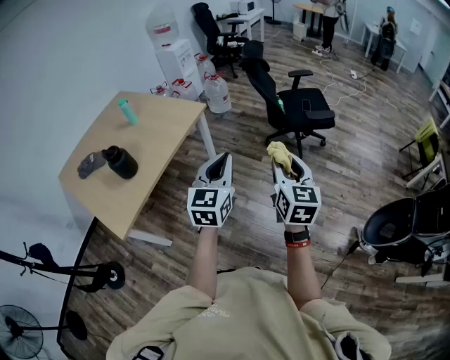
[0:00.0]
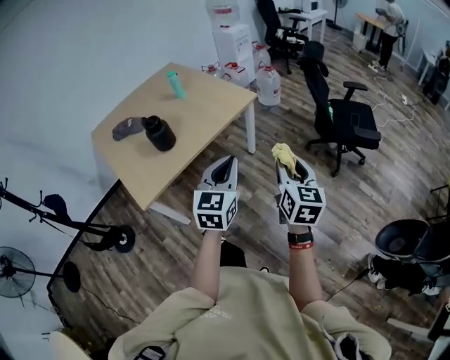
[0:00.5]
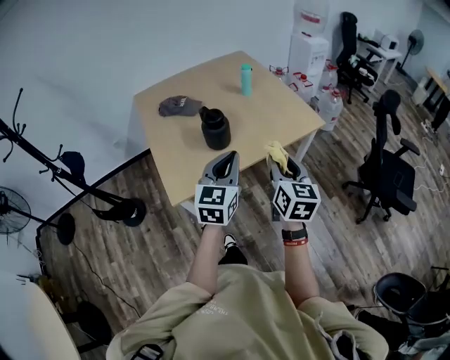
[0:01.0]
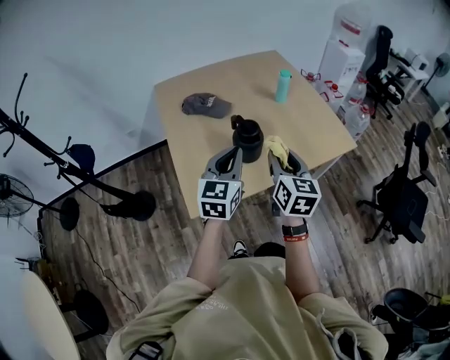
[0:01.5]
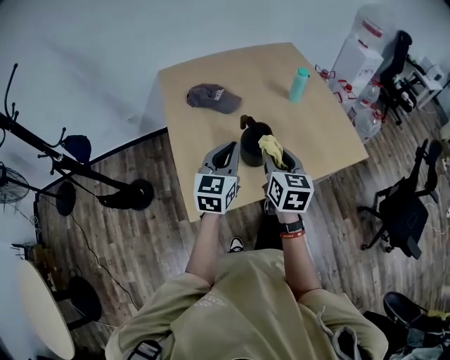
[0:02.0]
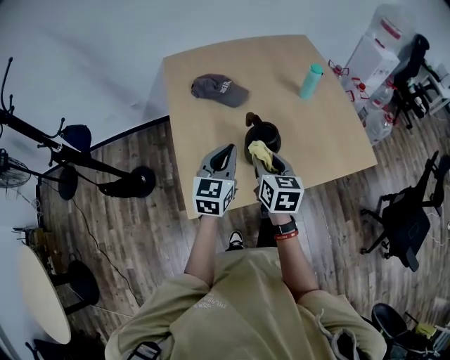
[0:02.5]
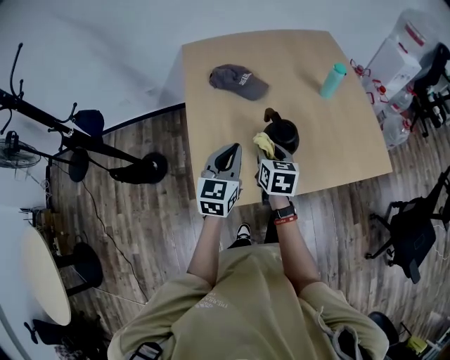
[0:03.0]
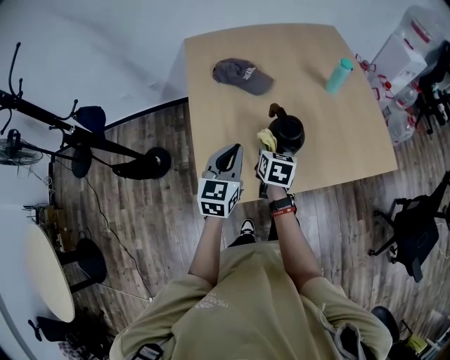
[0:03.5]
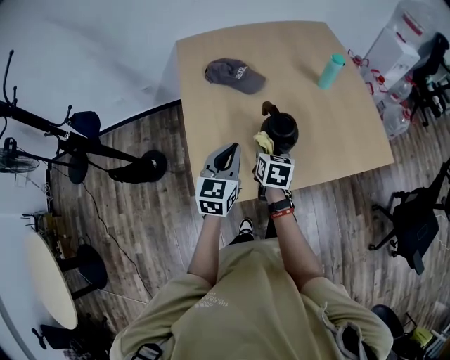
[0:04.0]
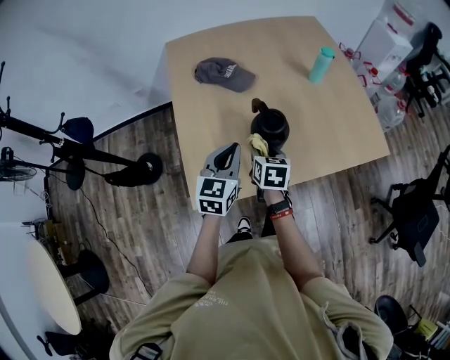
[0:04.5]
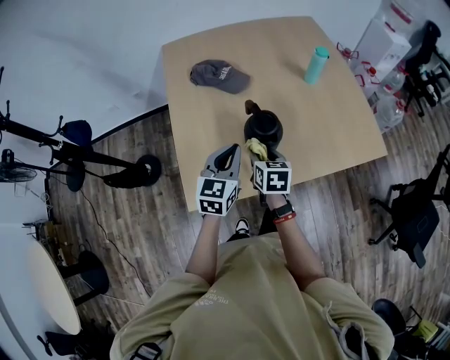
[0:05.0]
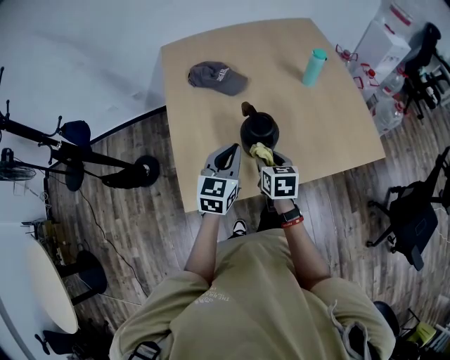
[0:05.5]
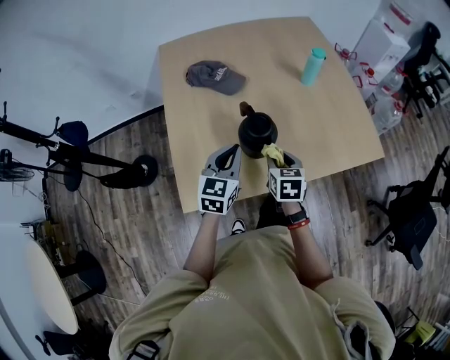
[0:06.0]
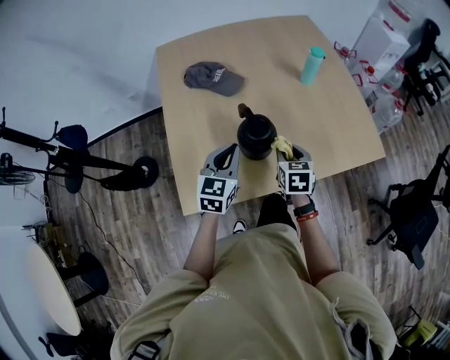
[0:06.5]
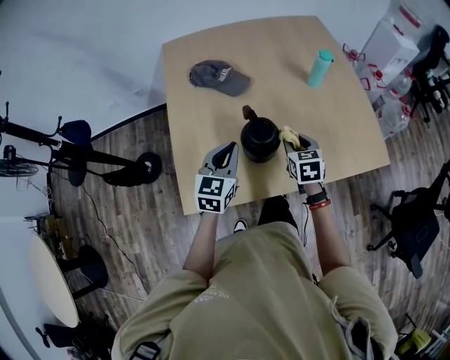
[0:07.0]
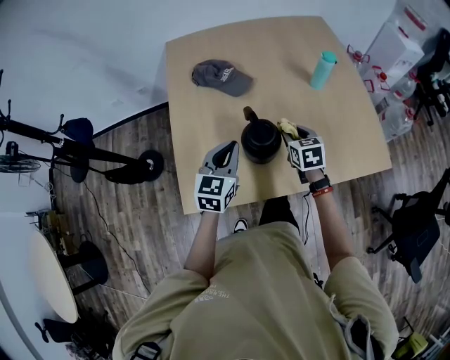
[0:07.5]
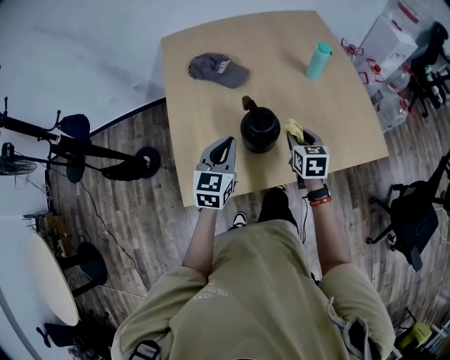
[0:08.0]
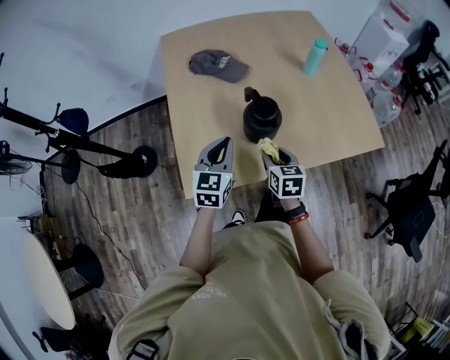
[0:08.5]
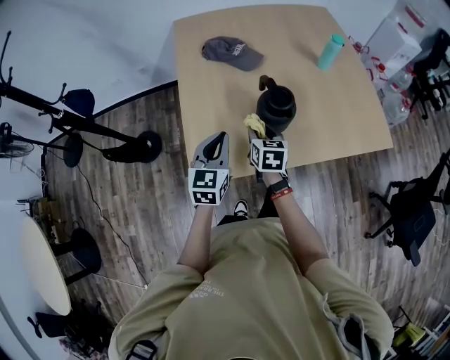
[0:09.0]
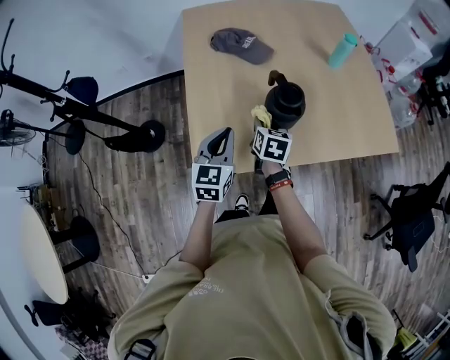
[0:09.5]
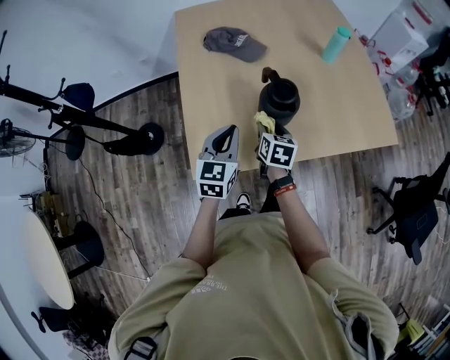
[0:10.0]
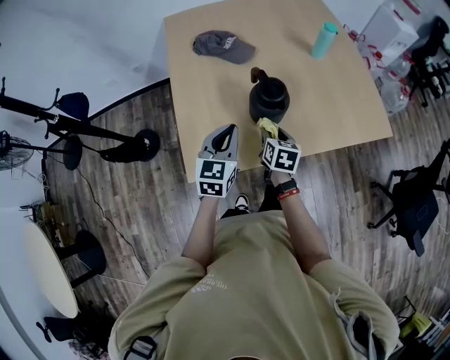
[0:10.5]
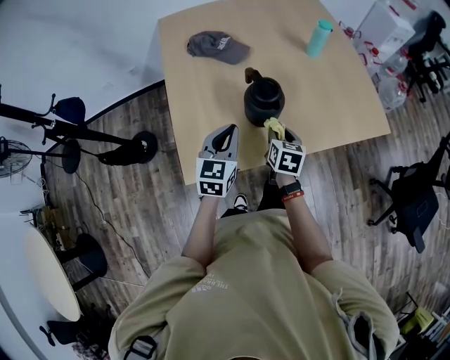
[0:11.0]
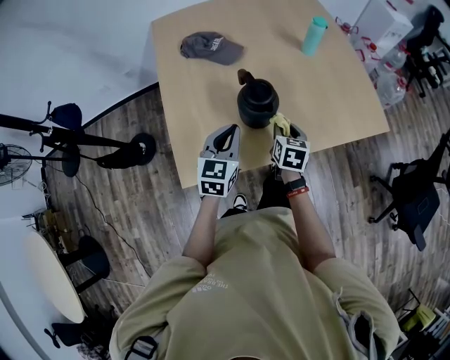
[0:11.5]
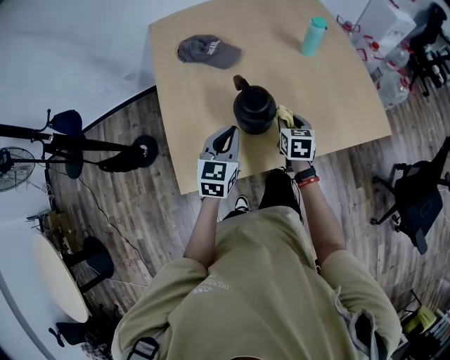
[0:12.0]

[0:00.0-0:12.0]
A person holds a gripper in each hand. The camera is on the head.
0:00.0 to 0:02.0: The pair of grippers is taken some 80 cm. The left gripper changes its angle by some 40 degrees. Meanwhile the right gripper rotates approximately 50 degrees.
0:02.0 to 0:04.0: The right gripper goes roughly 20 cm downward, forward and to the left, and swivels some 20 degrees; the left gripper moves downward, about 10 cm.
0:04.0 to 0:06.0: Both grippers move to the right, roughly 10 cm.
0:06.0 to 0:08.0: The right gripper travels forward and to the right by roughly 10 cm.
0:08.0 to 0:10.0: The right gripper moves to the left and backward, about 15 cm. Meanwhile the left gripper shifts roughly 10 cm backward and to the left.
0:10.0 to 0:12.0: The left gripper travels to the right and forward by roughly 10 cm. The right gripper heads to the right and forward, covering about 15 cm.

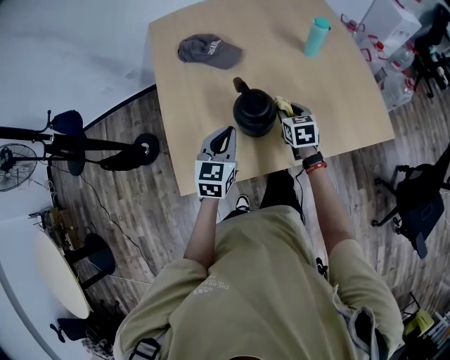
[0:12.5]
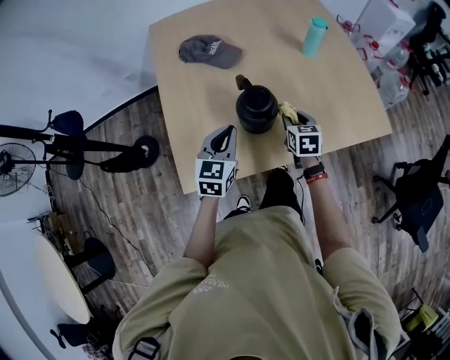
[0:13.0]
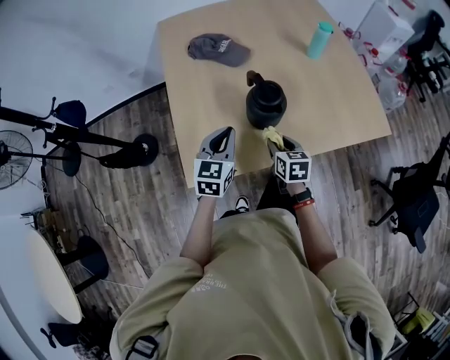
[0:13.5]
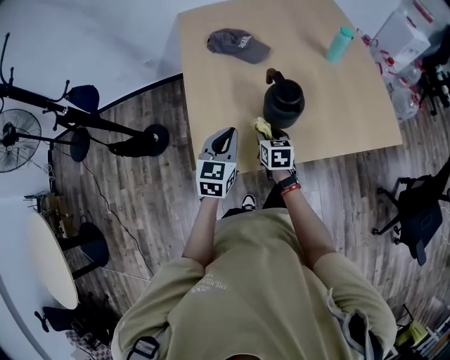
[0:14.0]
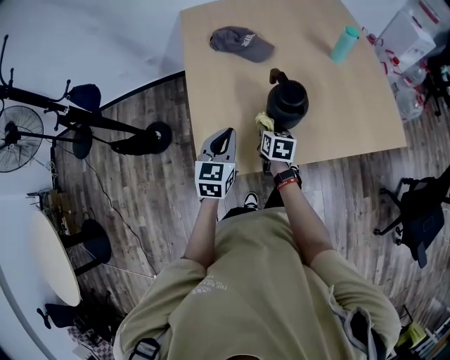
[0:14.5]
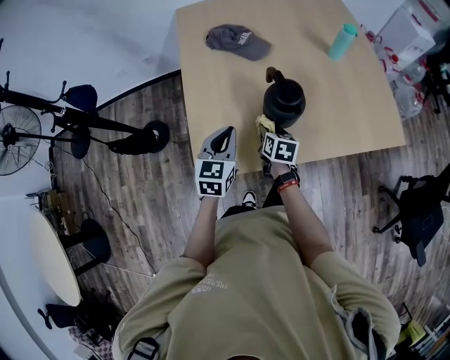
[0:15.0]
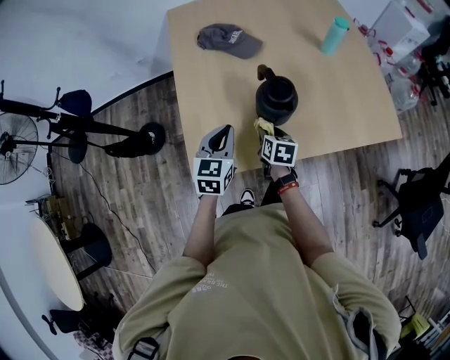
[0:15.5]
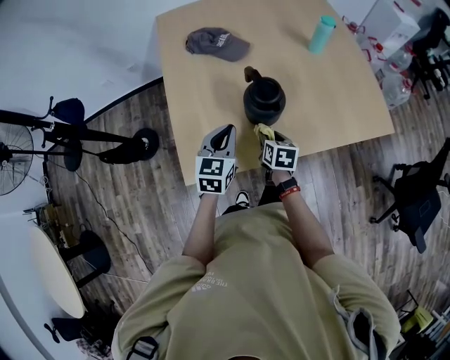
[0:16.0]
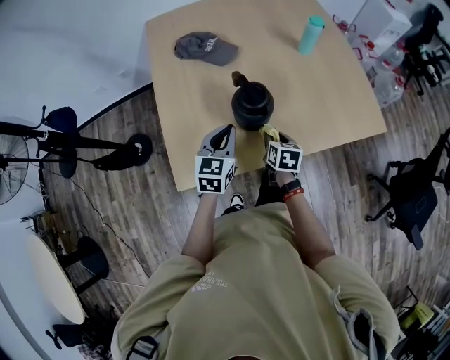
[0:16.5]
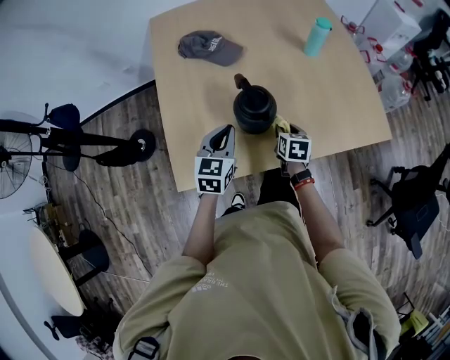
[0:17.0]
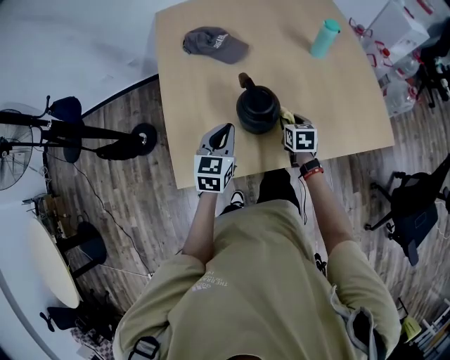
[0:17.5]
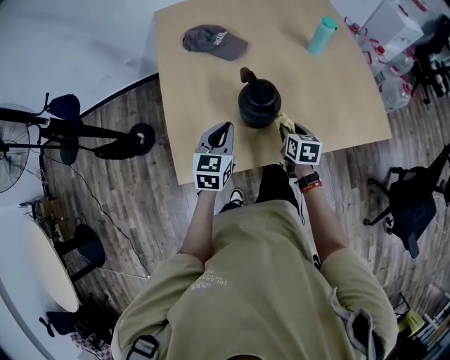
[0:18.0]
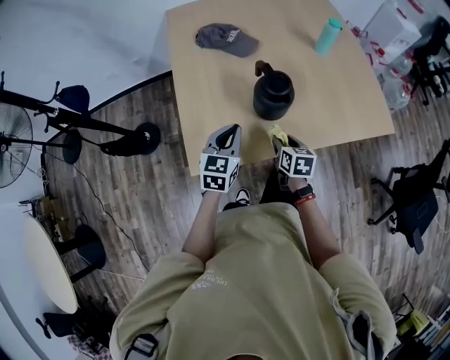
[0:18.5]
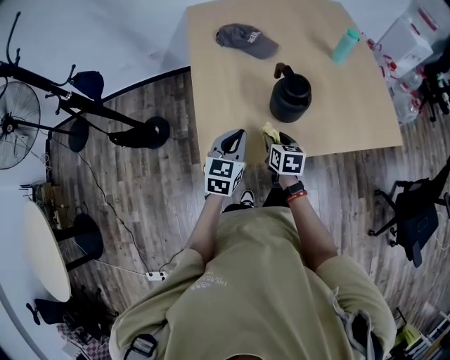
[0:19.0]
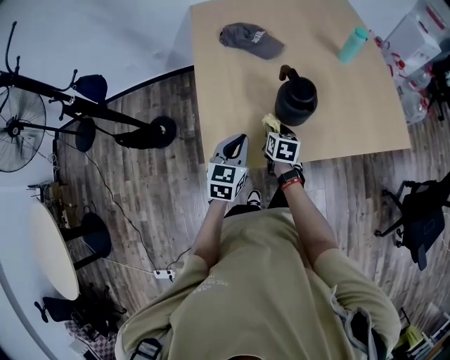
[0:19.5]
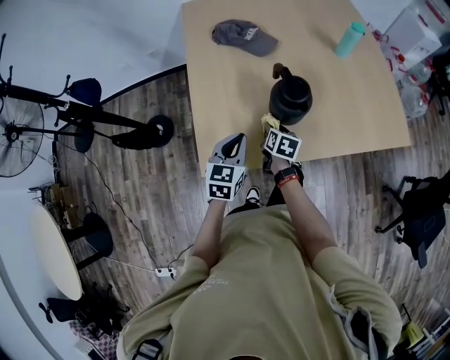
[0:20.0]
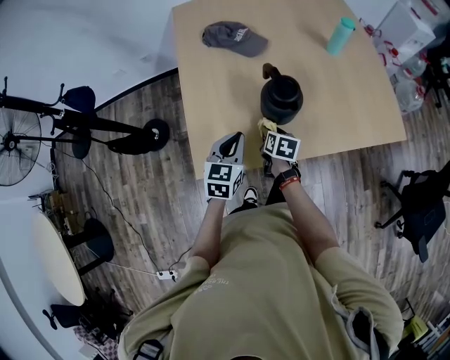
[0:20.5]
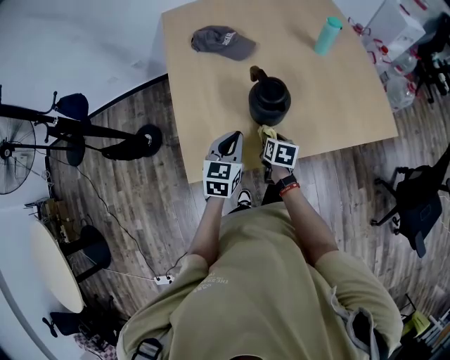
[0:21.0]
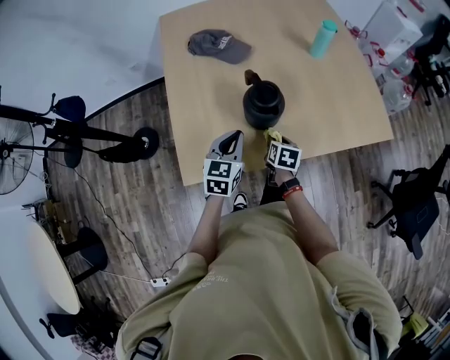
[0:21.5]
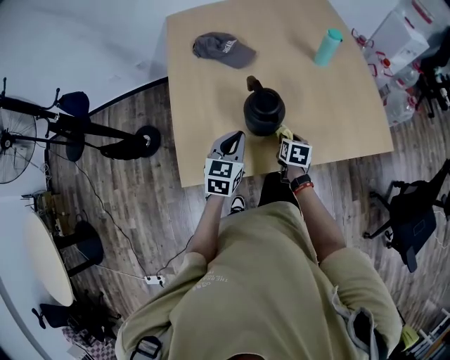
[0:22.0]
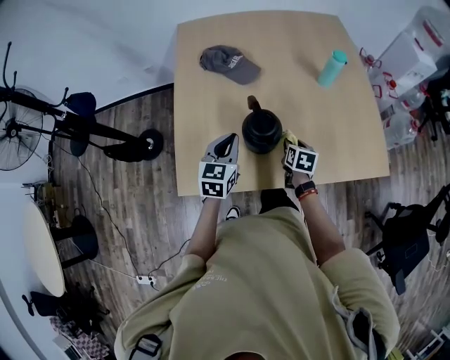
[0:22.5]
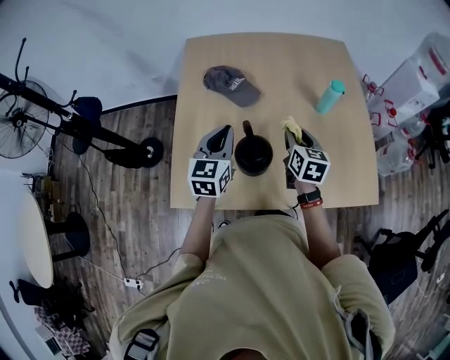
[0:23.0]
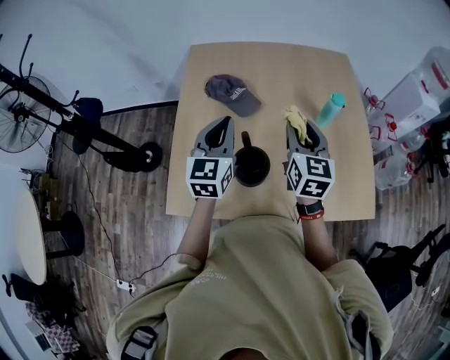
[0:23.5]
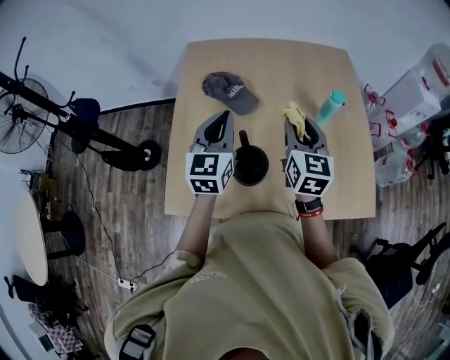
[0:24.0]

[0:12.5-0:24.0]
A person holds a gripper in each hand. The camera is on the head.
0:12.5 to 0:14.5: The right gripper goes roughly 20 cm to the left and backward. Meanwhile the left gripper travels to the left and backward by roughly 15 cm.
0:14.5 to 0:16.5: The two grippers go approximately 10 cm to the right.
0:16.5 to 0:18.5: The right gripper heads backward, covering approximately 5 cm; the left gripper goes some 10 cm backward and to the left.
0:18.5 to 0:20.0: The right gripper travels forward and to the left by some 10 cm.
0:20.0 to 0:22.0: The right gripper shifts some 15 cm to the right. Meanwhile the left gripper shifts roughly 10 cm to the right and forward.
0:22.0 to 0:24.0: Both grippers move upward and forward, approximately 35 cm. The right gripper angles its fingers upward, by some 40 degrees. Meanwhile the left gripper rotates roughly 30 degrees.

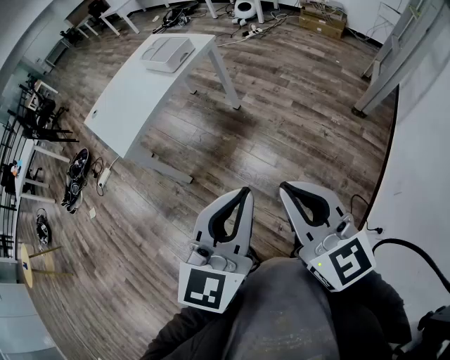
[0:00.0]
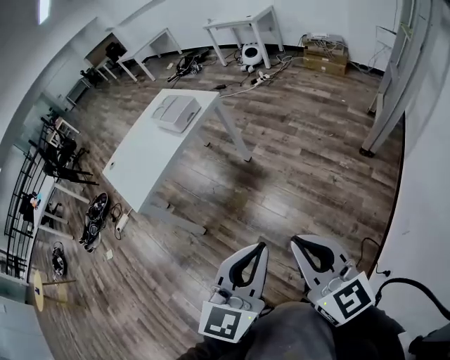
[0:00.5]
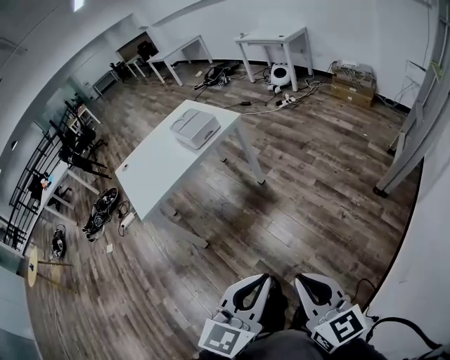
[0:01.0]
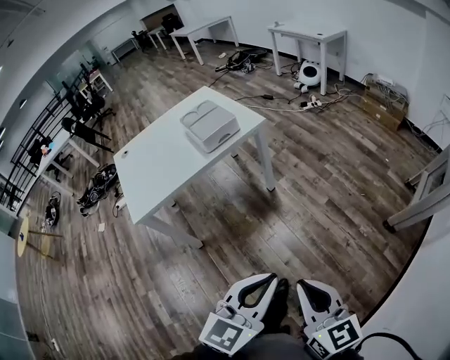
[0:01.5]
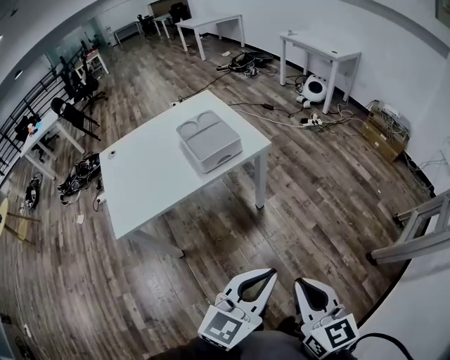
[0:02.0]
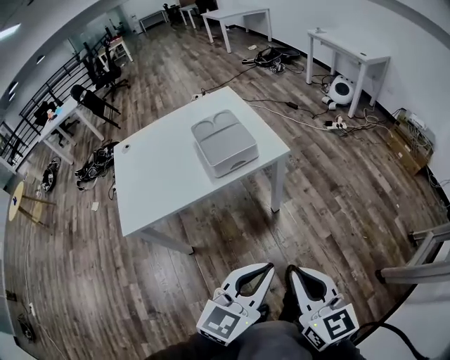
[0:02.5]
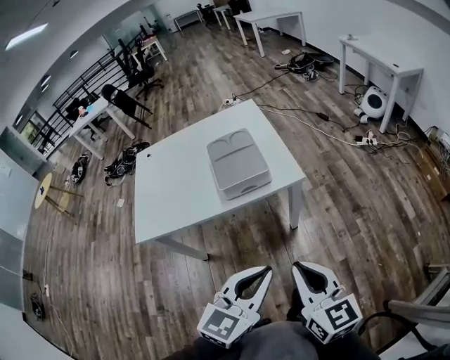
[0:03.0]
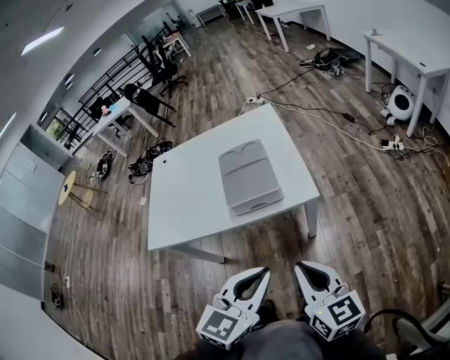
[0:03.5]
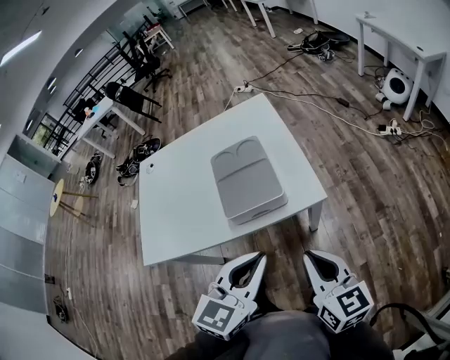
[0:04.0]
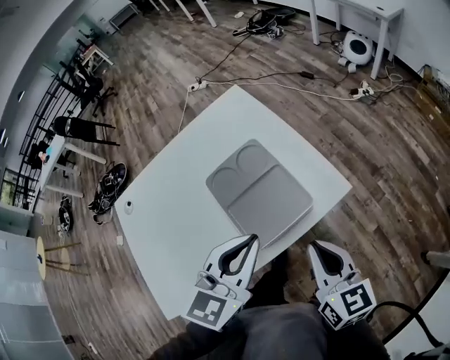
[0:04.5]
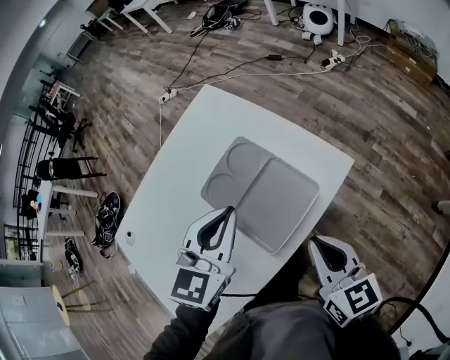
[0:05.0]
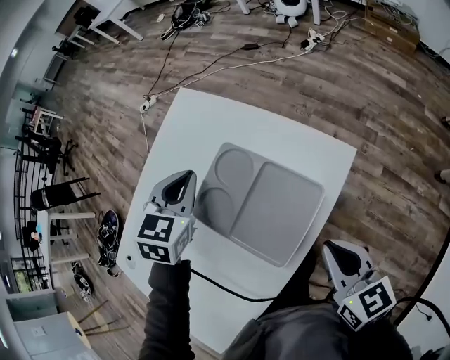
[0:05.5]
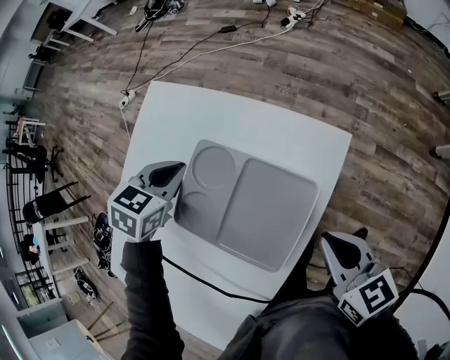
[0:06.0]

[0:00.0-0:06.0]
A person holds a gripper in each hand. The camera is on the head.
0:00.0 to 0:02.0: The two grippers go some 35 cm forward.
0:02.0 to 0:04.0: The right gripper shifts by about 35 cm, and changes its angle by some 20 degrees; the left gripper shifts by approximately 30 cm, and swivels roughly 30 degrees.
0:04.0 to 0:06.0: The left gripper moves some 40 cm, and tilts its fingers roughly 40 degrees downward. The right gripper moves roughly 20 cm, and turns by some 40 degrees.
